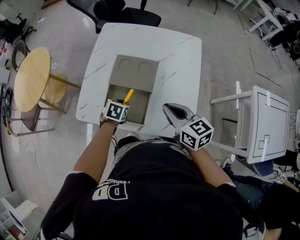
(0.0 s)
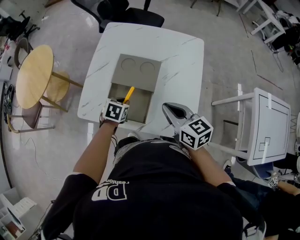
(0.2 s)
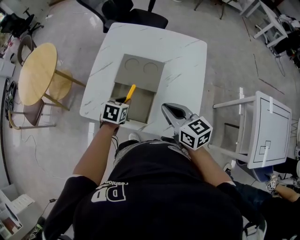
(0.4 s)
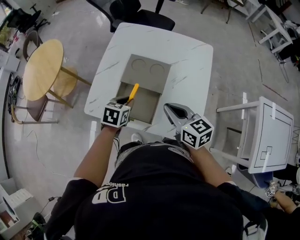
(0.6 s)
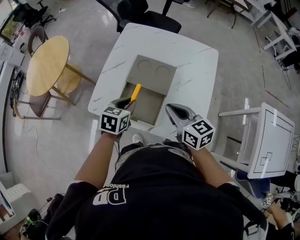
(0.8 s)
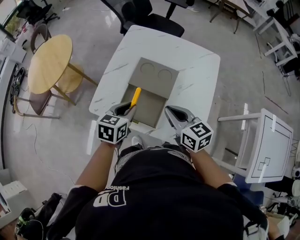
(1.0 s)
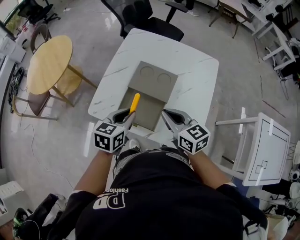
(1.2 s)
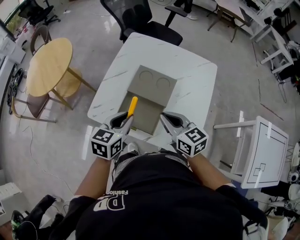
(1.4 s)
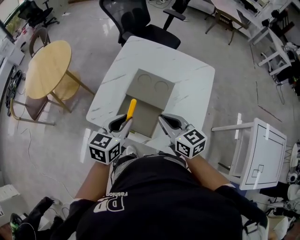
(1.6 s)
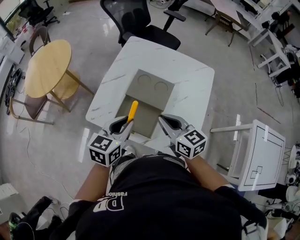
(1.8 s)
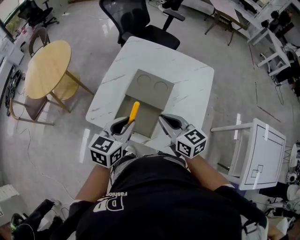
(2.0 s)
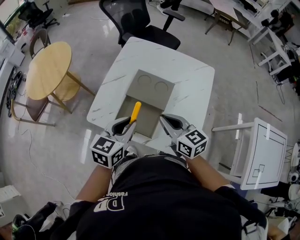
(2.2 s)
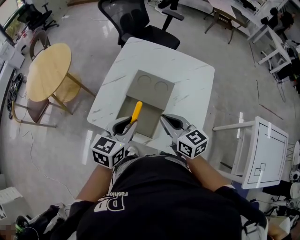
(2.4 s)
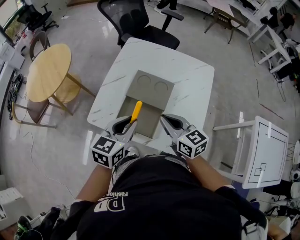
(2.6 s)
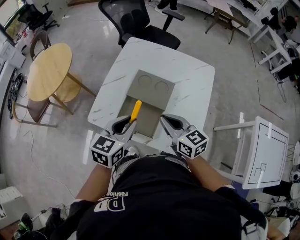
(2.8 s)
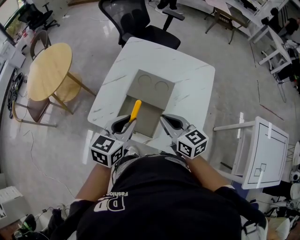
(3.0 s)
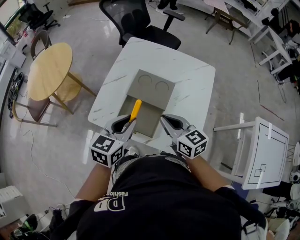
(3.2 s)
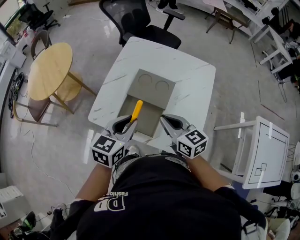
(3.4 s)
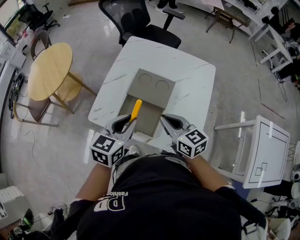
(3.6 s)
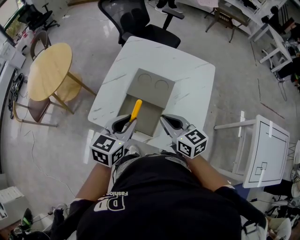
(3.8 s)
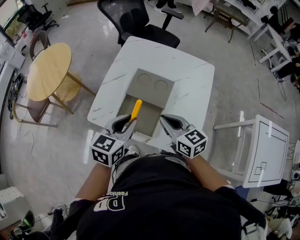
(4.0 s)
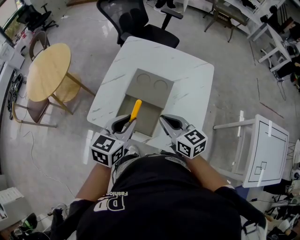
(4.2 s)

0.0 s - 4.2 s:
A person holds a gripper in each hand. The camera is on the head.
0.0 s - 1.4 s: The right gripper is displaced to the left by approximately 10 cm. The left gripper travels upward by some 20 cm, and tips its fingers upward by about 30 degrees.
1.4 s - 2.8 s: There are only small adjustments of the grippers.
2.8 s - 4.2 s: Neither gripper changes place.

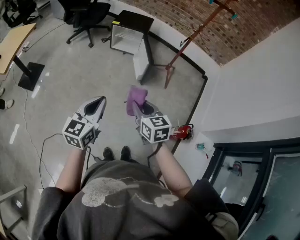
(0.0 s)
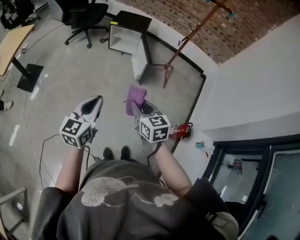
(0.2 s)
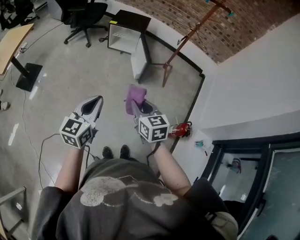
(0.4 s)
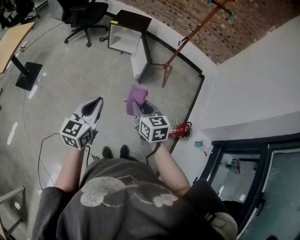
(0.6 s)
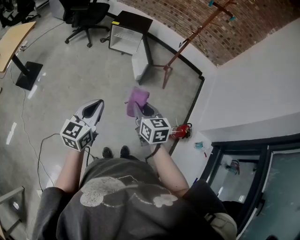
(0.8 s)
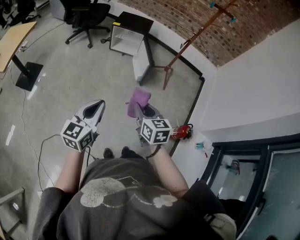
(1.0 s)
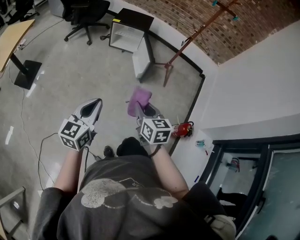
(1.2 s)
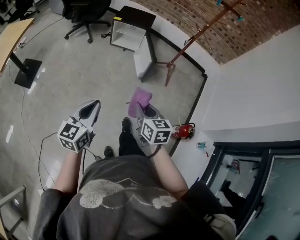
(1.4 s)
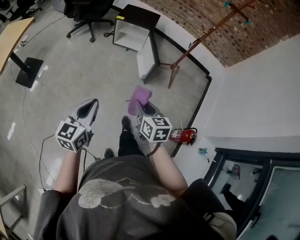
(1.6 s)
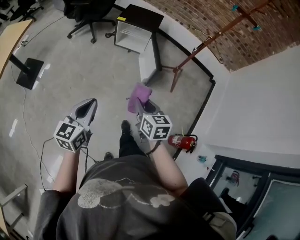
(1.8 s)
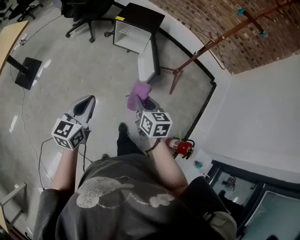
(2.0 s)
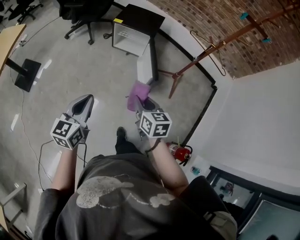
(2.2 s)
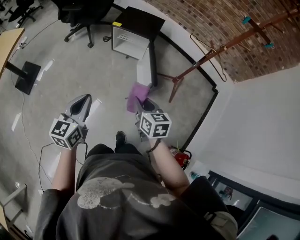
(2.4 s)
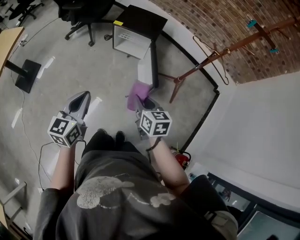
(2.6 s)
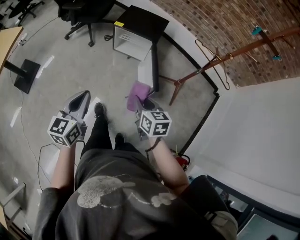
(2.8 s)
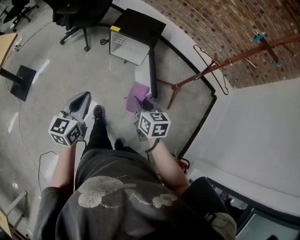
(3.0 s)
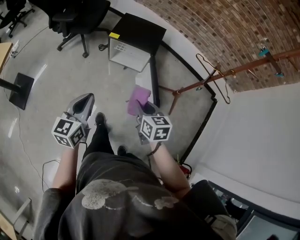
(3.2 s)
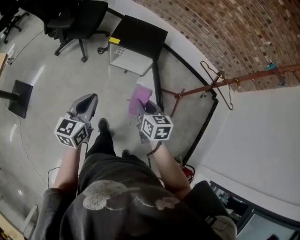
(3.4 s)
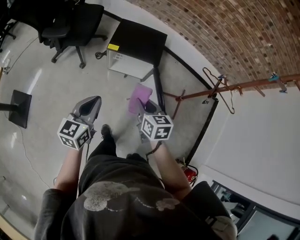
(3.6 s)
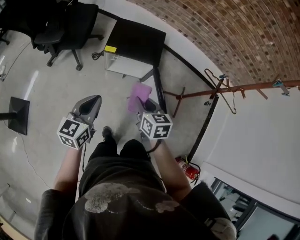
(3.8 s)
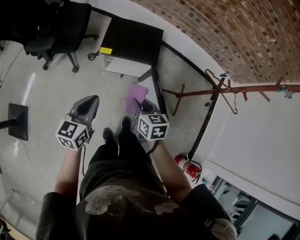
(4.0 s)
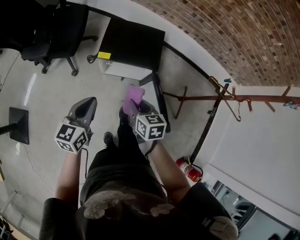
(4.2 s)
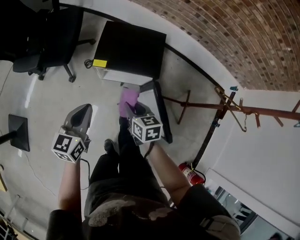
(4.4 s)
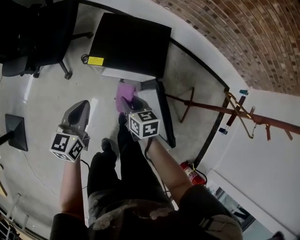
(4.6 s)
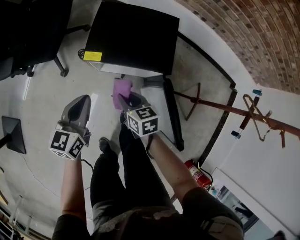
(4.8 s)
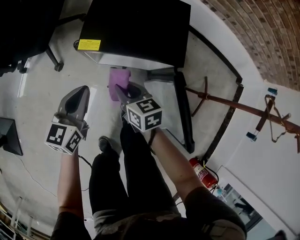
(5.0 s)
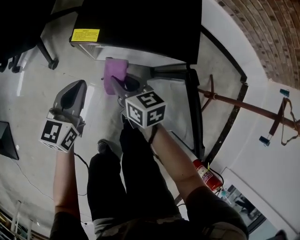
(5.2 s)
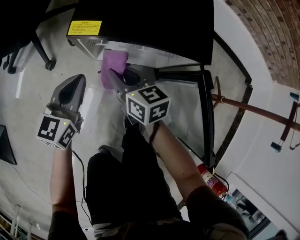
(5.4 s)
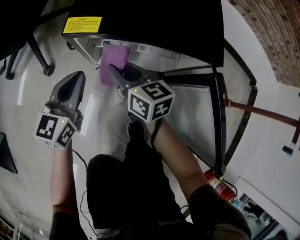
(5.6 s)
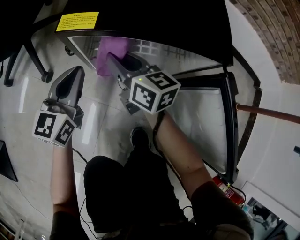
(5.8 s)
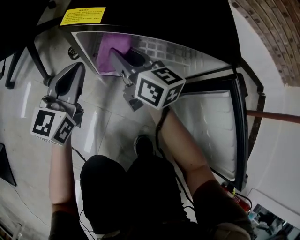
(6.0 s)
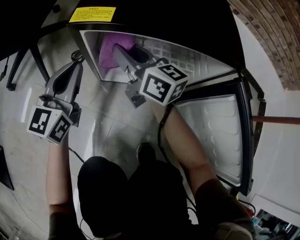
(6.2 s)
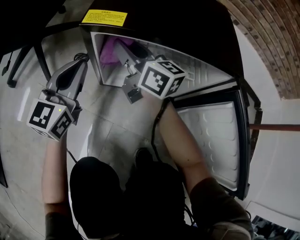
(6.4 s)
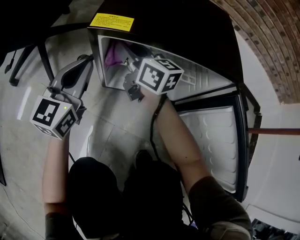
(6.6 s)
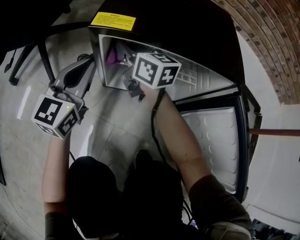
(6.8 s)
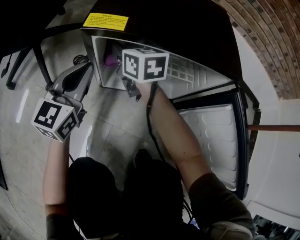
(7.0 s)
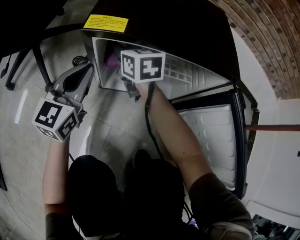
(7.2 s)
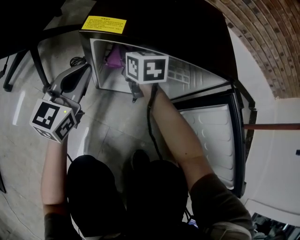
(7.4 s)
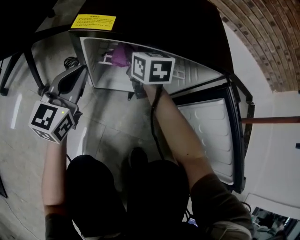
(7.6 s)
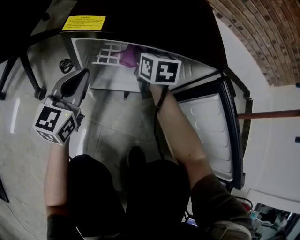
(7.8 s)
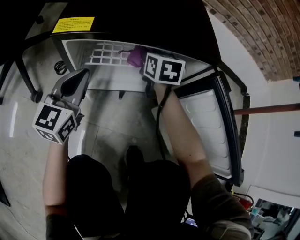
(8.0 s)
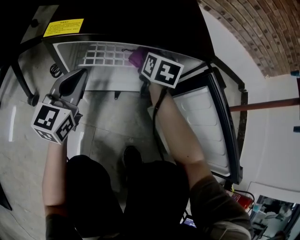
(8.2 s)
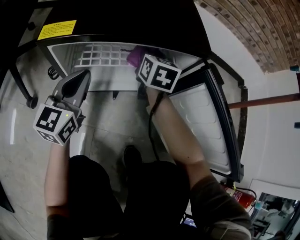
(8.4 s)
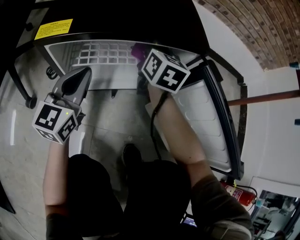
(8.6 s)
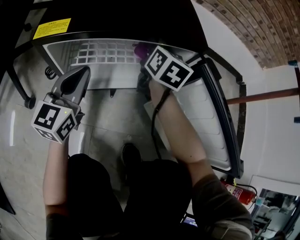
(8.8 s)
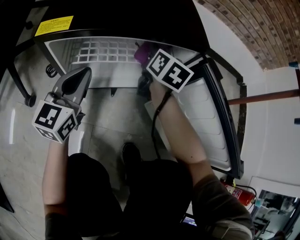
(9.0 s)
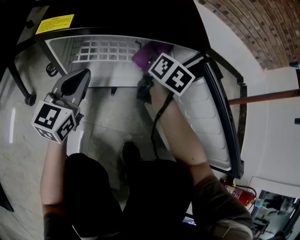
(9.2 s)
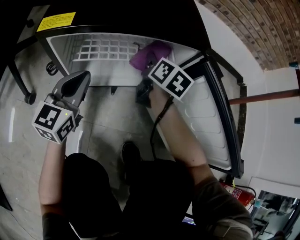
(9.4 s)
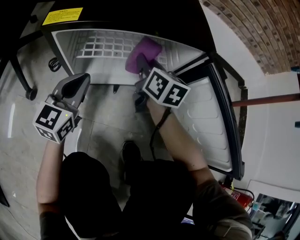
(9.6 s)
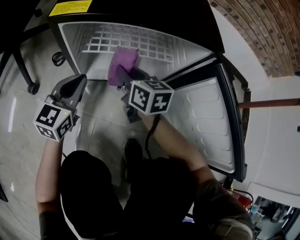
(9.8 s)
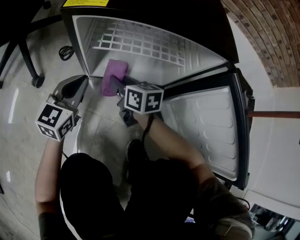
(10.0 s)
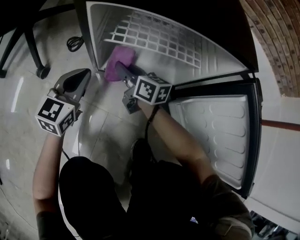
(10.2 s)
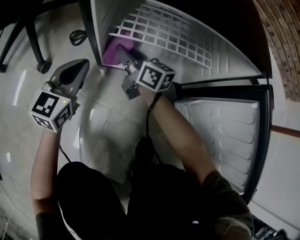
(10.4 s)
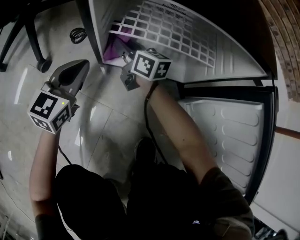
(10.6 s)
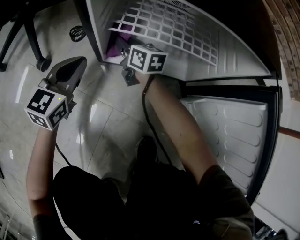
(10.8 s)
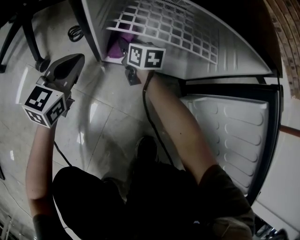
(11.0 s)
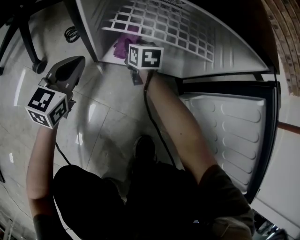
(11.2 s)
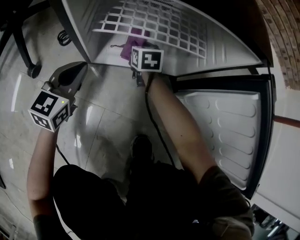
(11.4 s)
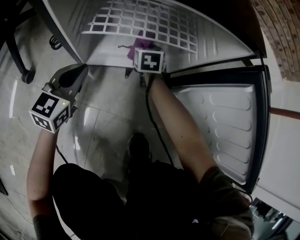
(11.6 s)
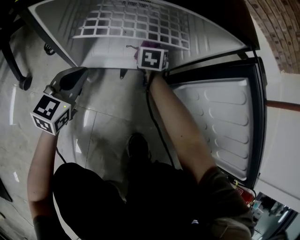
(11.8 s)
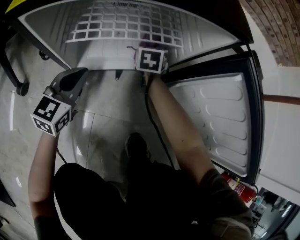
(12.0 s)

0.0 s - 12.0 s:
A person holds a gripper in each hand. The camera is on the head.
0.0 s - 1.6 s: The left gripper shifts about 5 cm to the left. Meanwhile the right gripper shifts approximately 5 cm forward.
1.6 s - 3.0 s: Both grippers move forward, roughly 35 cm.
3.0 s - 4.4 s: The two grippers go approximately 35 cm forward.
4.4 s - 6.0 s: The two grippers go approximately 40 cm downward and forward. The right gripper angles its fingers upward, by some 30 degrees.
6.0 s - 7.6 s: The right gripper shifts about 10 cm forward, downward and to the right, and swivels roughly 30 degrees.
7.6 s - 9.0 s: The left gripper goes approximately 10 cm to the right. The right gripper shifts roughly 20 cm to the right, and swivels some 40 degrees.
9.0 s - 10.4 s: The right gripper changes place by approximately 30 cm, and swivels roughly 50 degrees. Meanwhile the left gripper changes place by roughly 15 cm.
10.4 s - 12.0 s: The left gripper ends up some 10 cm from where it was. The right gripper ends up approximately 25 cm from where it was, and points its fingers some 30 degrees further downward.

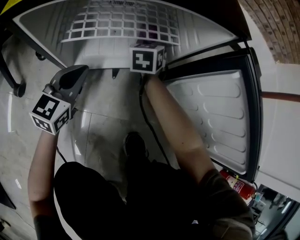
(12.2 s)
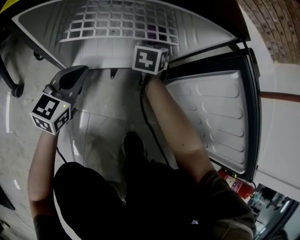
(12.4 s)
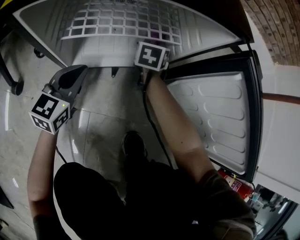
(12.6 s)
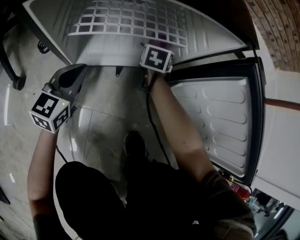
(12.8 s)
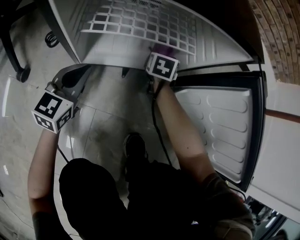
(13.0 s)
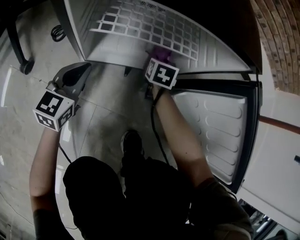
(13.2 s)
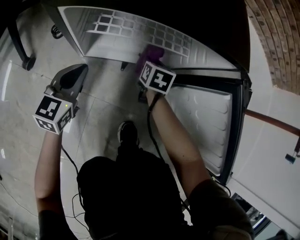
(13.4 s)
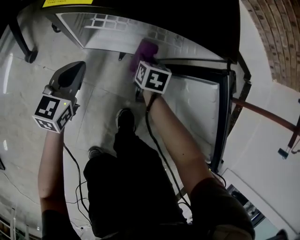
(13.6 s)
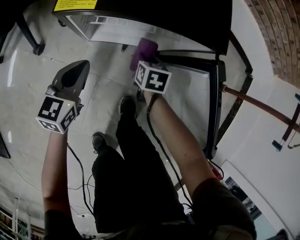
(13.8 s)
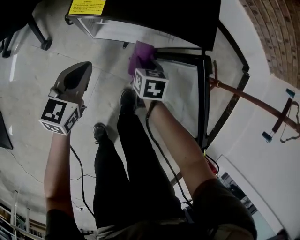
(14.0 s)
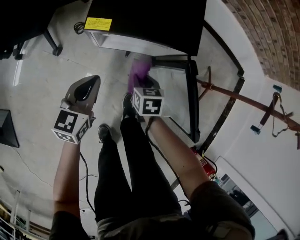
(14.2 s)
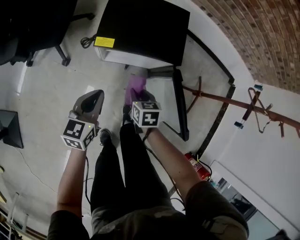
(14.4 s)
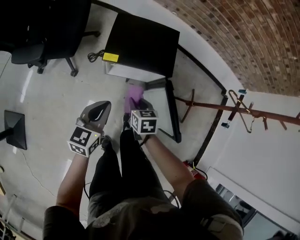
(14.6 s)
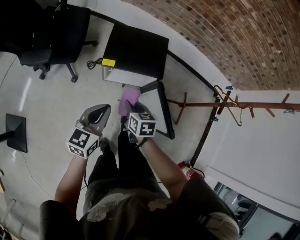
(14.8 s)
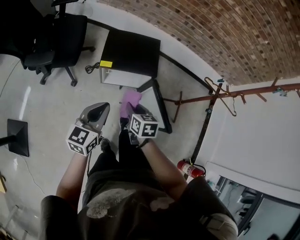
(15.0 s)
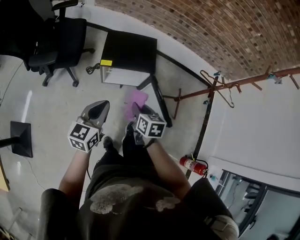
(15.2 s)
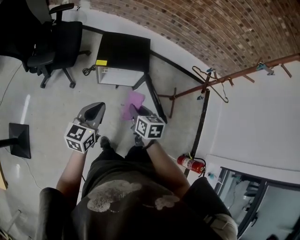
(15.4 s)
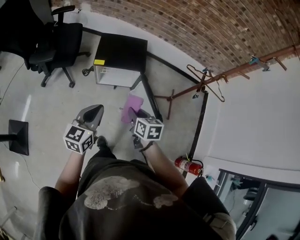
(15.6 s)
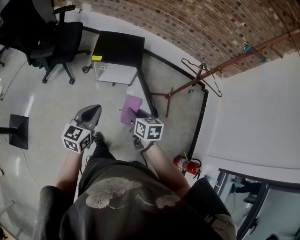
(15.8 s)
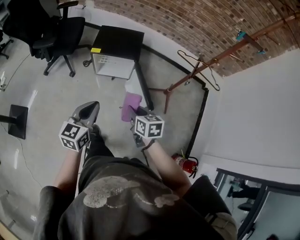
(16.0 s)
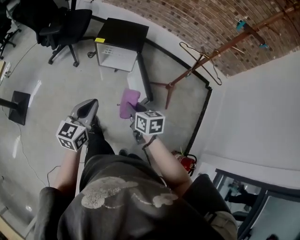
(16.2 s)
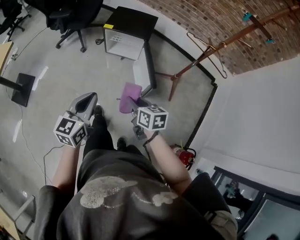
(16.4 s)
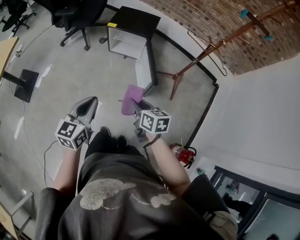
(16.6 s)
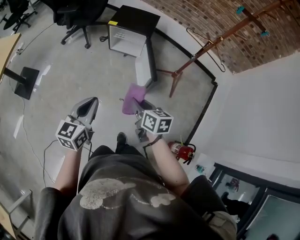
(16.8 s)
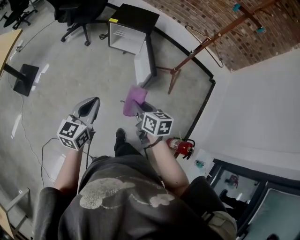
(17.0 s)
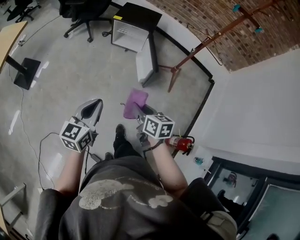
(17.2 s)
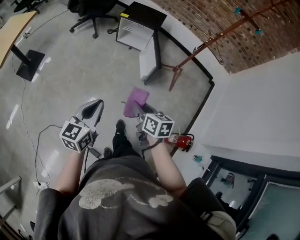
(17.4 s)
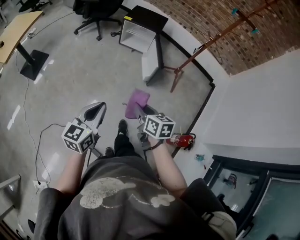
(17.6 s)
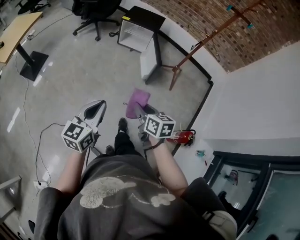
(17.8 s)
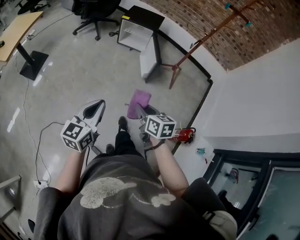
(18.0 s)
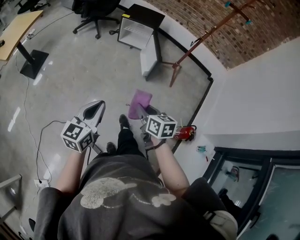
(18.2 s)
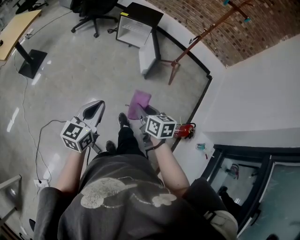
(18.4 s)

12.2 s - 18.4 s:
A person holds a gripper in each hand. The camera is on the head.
12.2 s - 13.8 s: The left gripper shifts roughly 15 cm upward and backward, and changes its angle by roughly 20 degrees, while the right gripper goes roughly 15 cm backward, and swivels about 30 degrees.
13.8 s - 15.4 s: Both grippers travel together upward and backward, approximately 60 cm. The right gripper turns by approximately 20 degrees.
15.4 s - 16.8 s: The right gripper travels backward and to the right by roughly 35 cm, and turns by some 20 degrees. Meanwhile the left gripper goes some 40 cm backward.
16.8 s - 18.4 s: Both grippers travel together backward, some 25 cm.

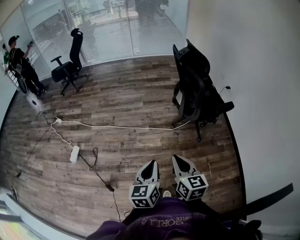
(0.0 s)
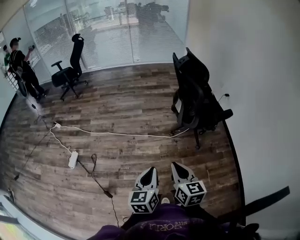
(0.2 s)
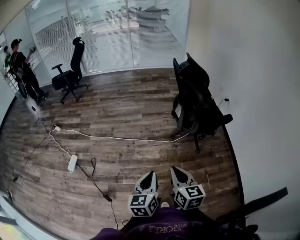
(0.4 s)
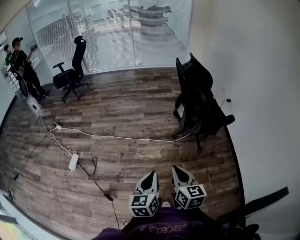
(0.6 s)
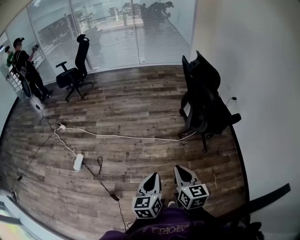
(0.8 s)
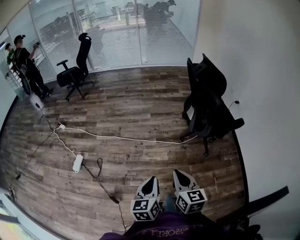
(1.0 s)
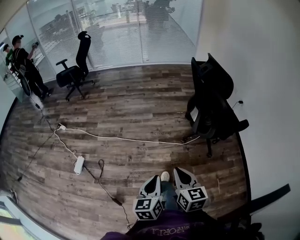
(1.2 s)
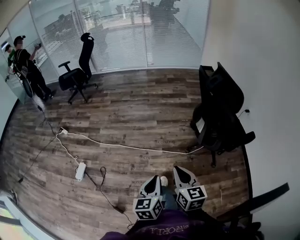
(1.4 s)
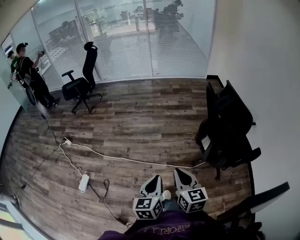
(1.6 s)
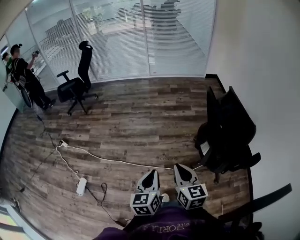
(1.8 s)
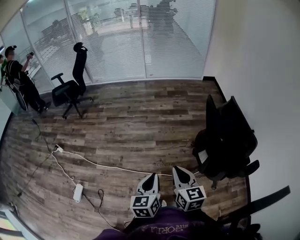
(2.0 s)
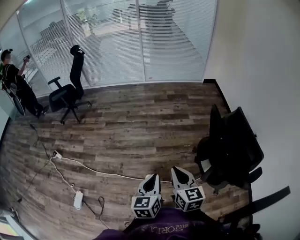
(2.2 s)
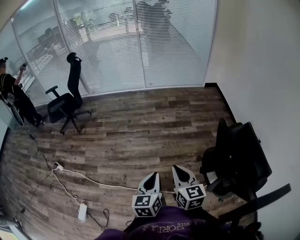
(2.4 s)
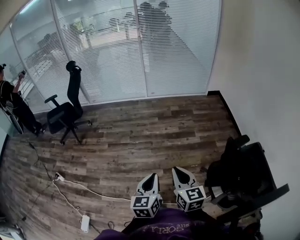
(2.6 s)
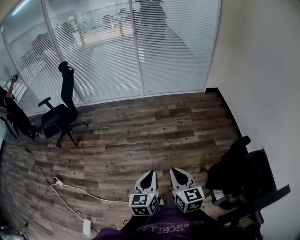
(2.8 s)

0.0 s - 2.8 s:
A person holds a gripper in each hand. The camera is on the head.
0.0 s - 1.4 s: Both grippers travel together forward and to the left, about 20 cm.
1.4 s - 2.8 s: The pair of grippers is taken forward, about 70 cm.
